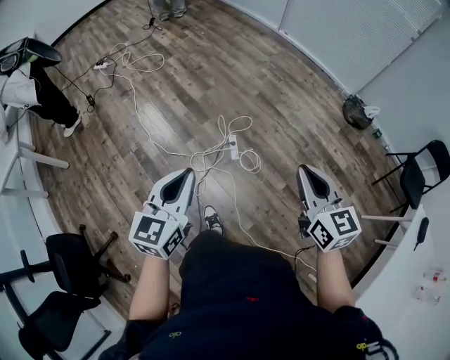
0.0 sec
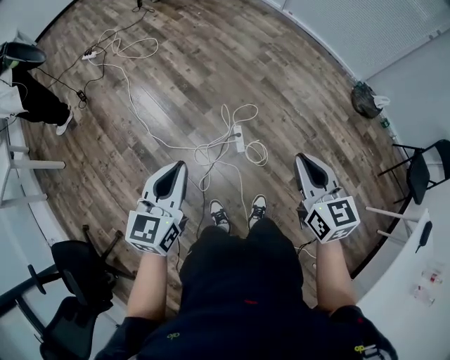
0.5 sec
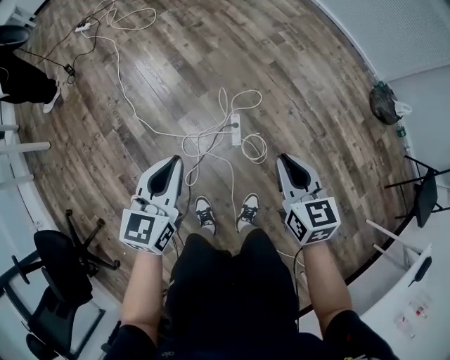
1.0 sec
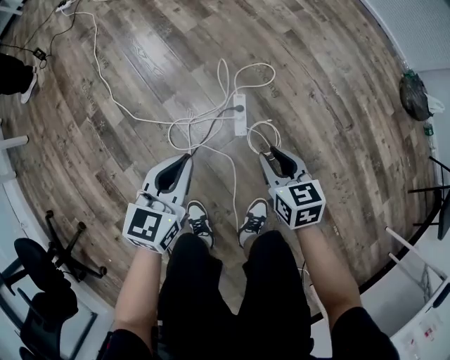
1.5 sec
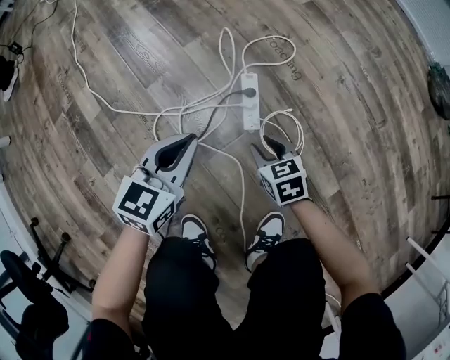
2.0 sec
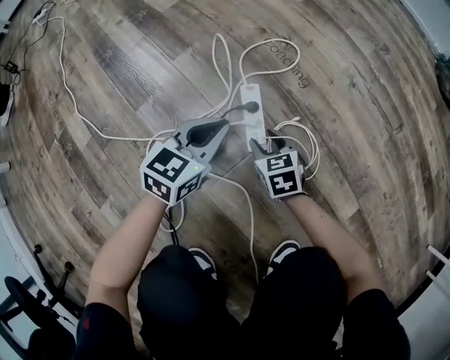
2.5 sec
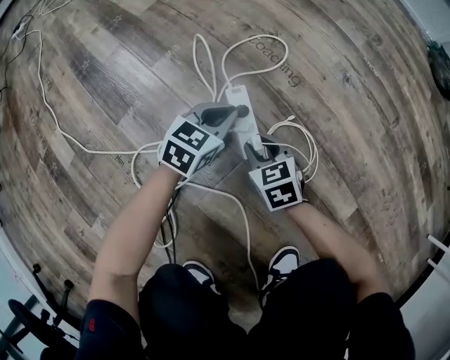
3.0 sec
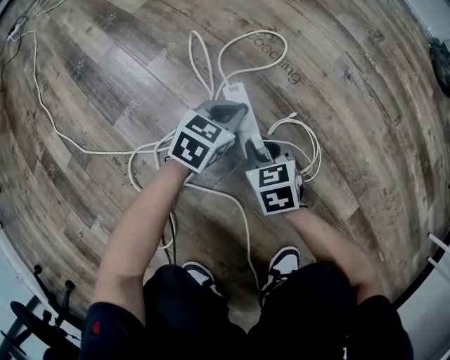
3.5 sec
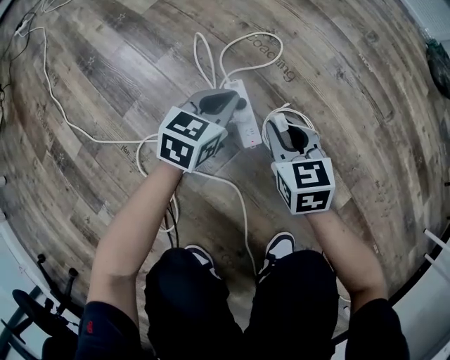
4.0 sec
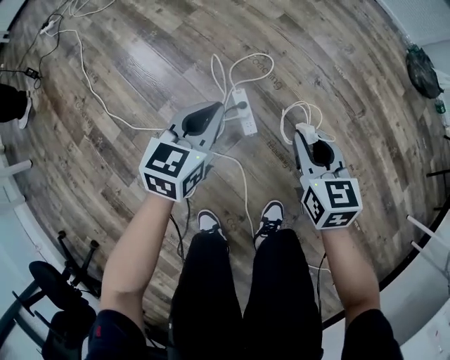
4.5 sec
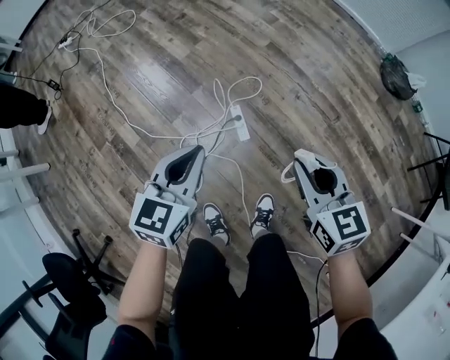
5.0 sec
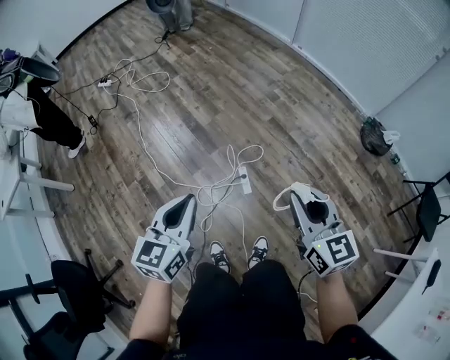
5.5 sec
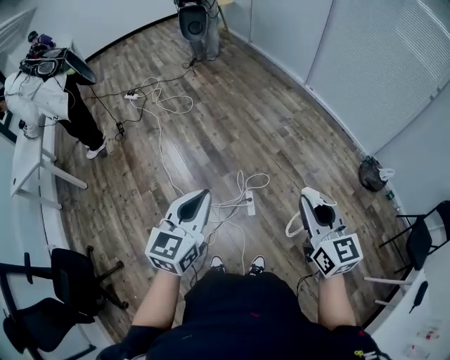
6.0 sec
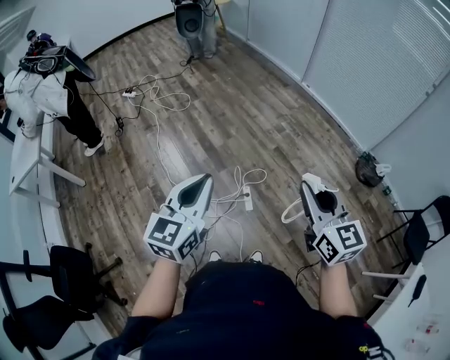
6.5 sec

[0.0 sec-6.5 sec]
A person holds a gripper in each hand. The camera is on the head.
0.0 sec to 2.0 sec: The grippers both shift downward by some 90 cm. The right gripper tilts its fingers approximately 40 degrees downward, and opens.
2.0 sec to 4.5 sec: The left gripper goes about 20 cm upward and forward, while the right gripper travels upward by about 30 cm, and changes its angle by some 30 degrees.
4.5 sec to 6.5 sec: Both grippers move upward, some 70 cm. The left gripper swivels about 30 degrees, while the right gripper turns by some 30 degrees.

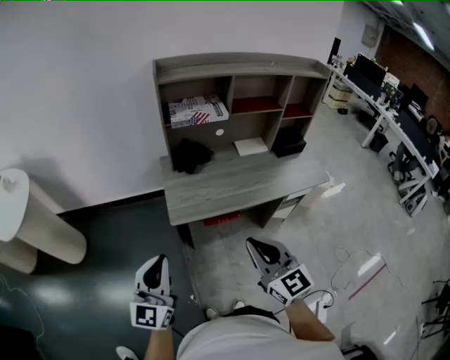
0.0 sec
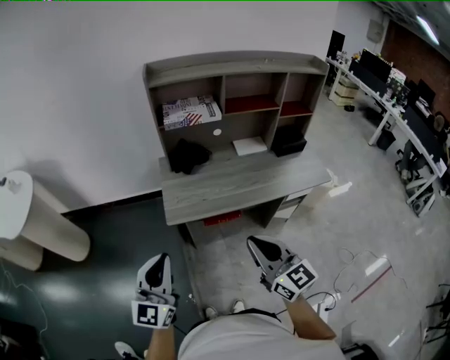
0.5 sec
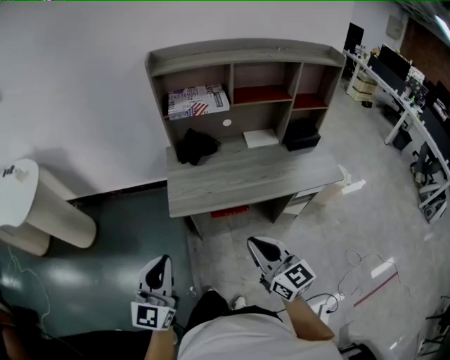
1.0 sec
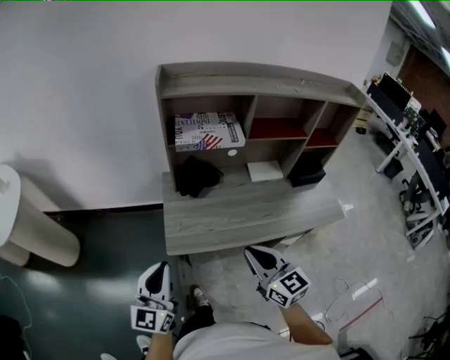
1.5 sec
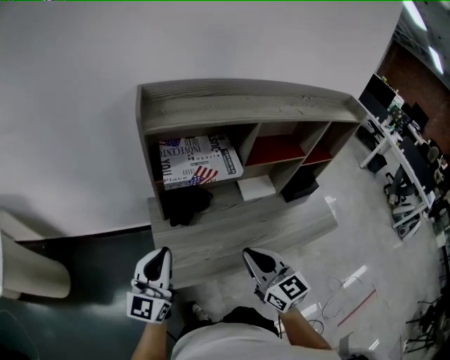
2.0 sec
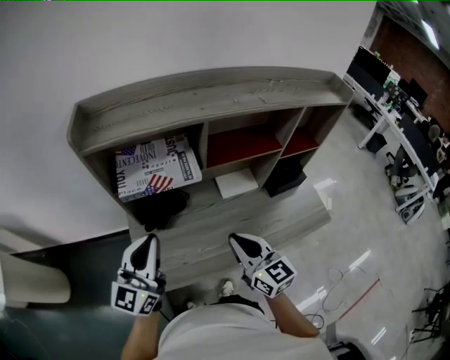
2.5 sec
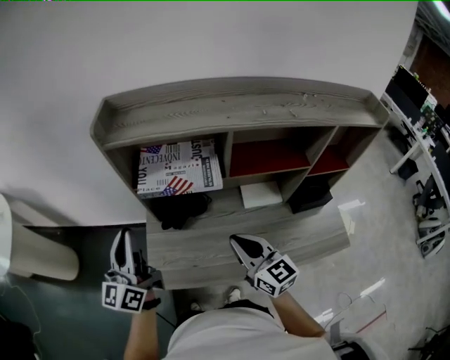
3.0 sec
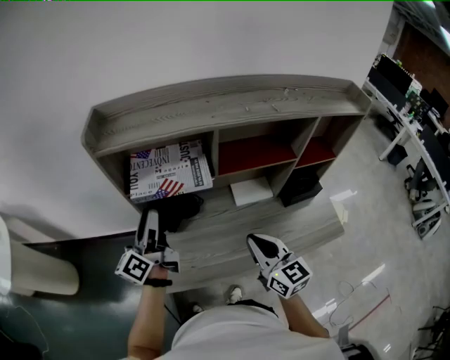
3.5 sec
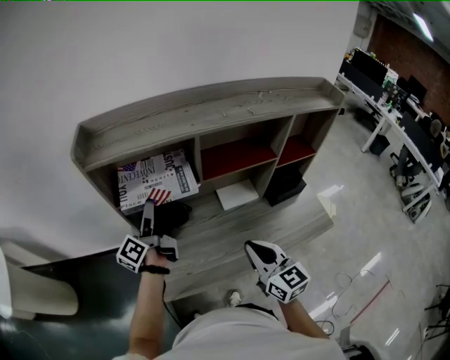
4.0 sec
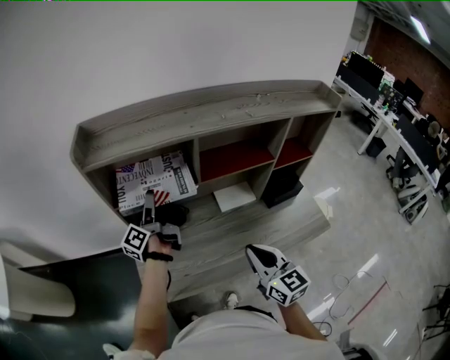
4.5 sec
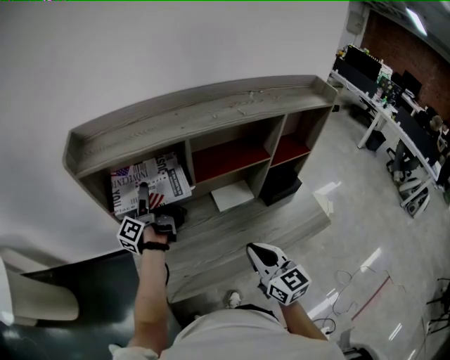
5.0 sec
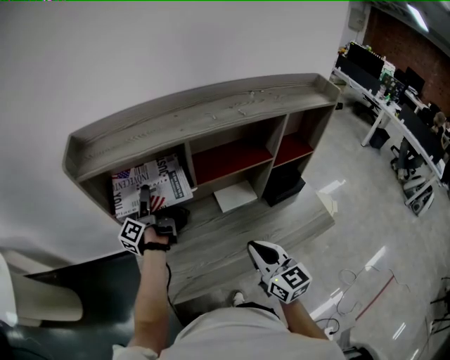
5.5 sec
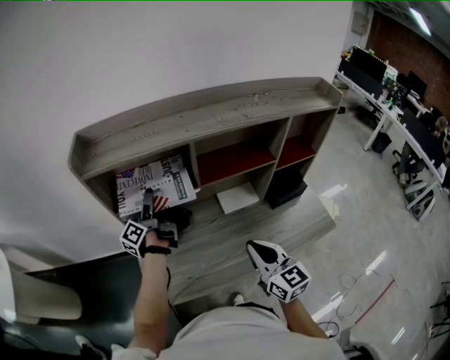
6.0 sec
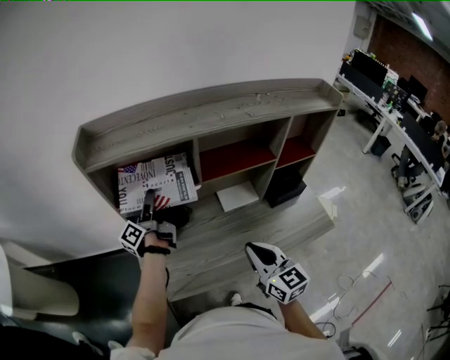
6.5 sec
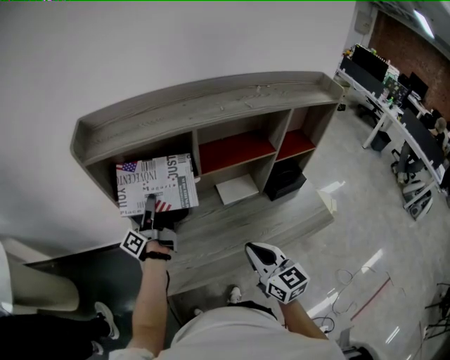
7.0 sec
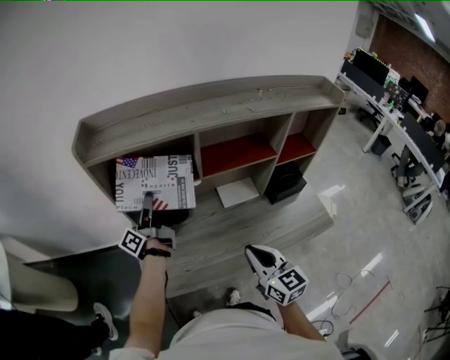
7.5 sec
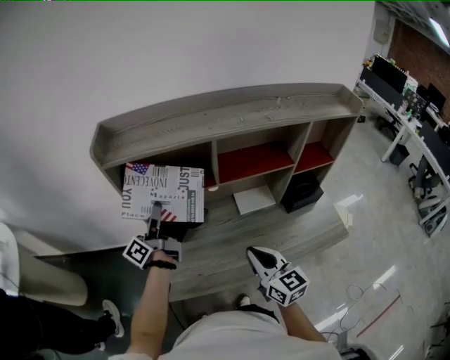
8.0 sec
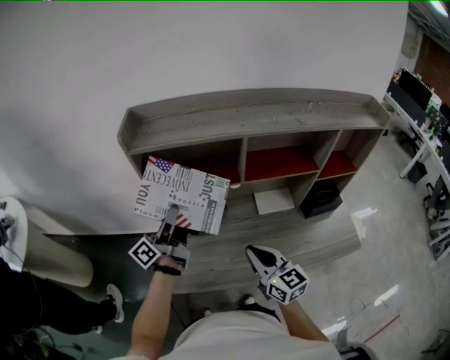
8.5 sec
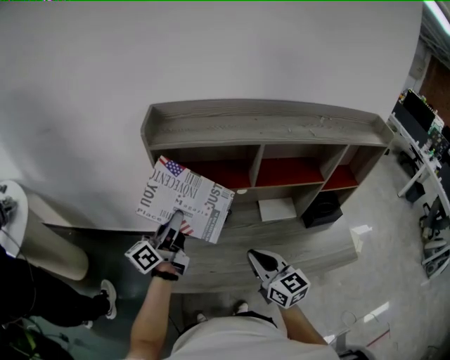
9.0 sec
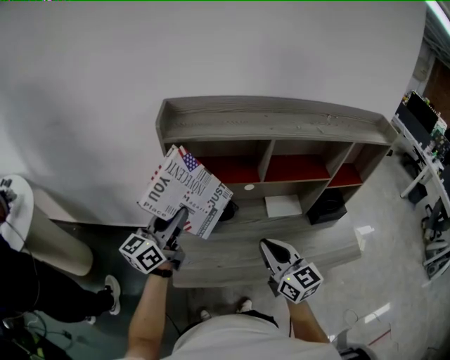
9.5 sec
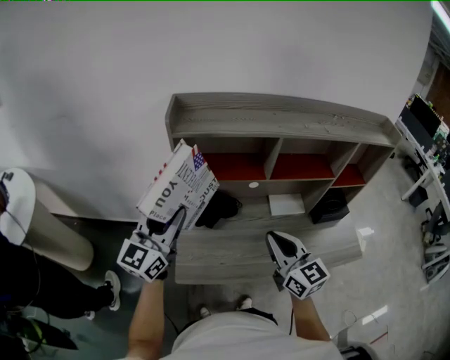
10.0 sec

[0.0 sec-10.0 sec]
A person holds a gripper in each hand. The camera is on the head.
0.0 sec to 2.0 sec: The two grippers go approximately 35 cm forward.
2.0 sec to 4.0 sec: The right gripper goes some 15 cm to the right, while the left gripper shifts roughly 25 cm forward and to the right, rolls counterclockwise, seen from behind, by about 60 degrees, and opens.
4.0 sec to 6.0 sec: The left gripper moves forward, some 5 cm.
6.0 sec to 8.0 sec: The left gripper shifts some 5 cm backward, and closes up.
8.0 sec to 10.0 sec: The right gripper moves to the left and upward, approximately 10 cm; the left gripper heads backward, upward and to the left, covering roughly 20 cm, and rotates around the line of its fingers by roughly 60 degrees, clockwise from behind.

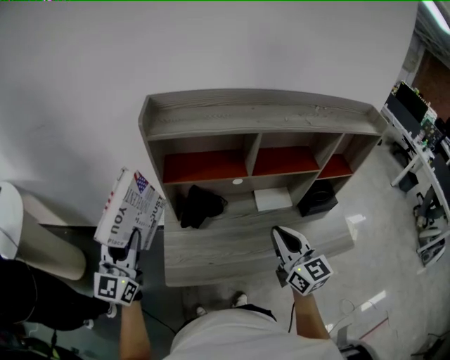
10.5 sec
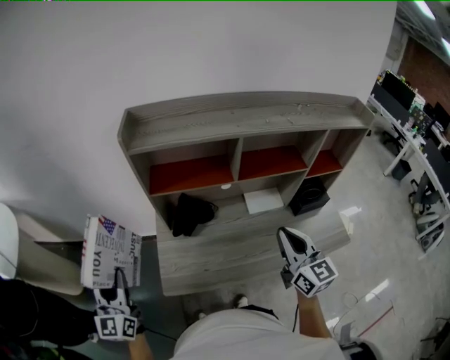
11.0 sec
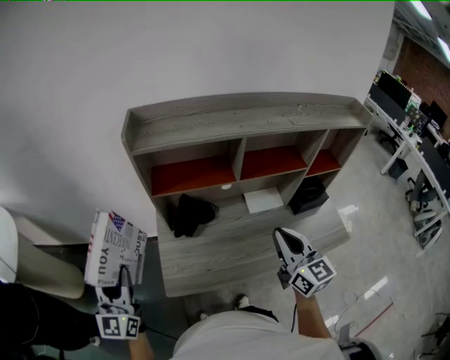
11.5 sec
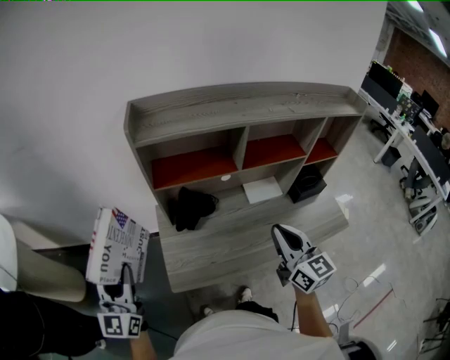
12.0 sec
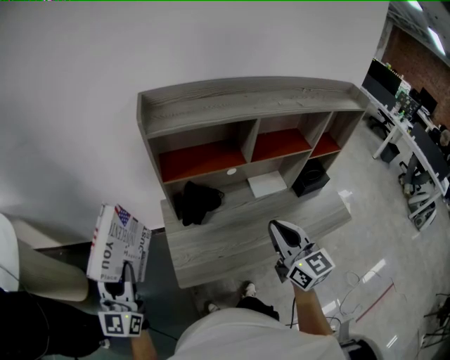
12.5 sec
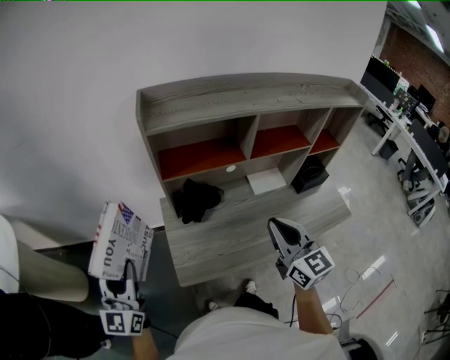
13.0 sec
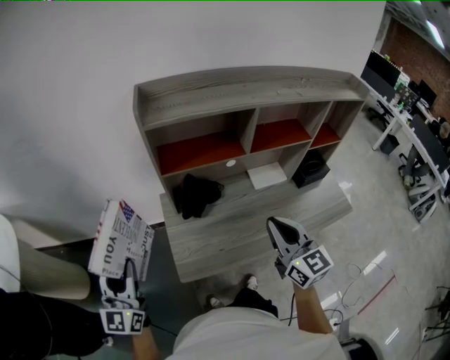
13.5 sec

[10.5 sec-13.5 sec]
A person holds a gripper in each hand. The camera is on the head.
10.5 sec to 12.0 sec: The left gripper travels to the left by some 5 cm.
12.0 sec to 13.5 sec: The right gripper moves to the left, roughly 5 cm.

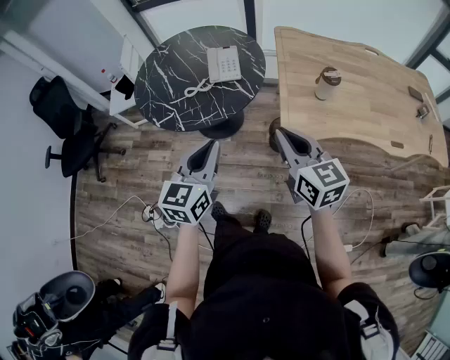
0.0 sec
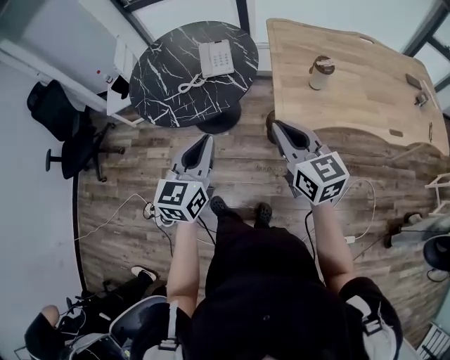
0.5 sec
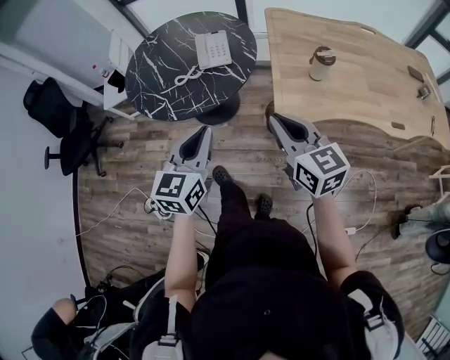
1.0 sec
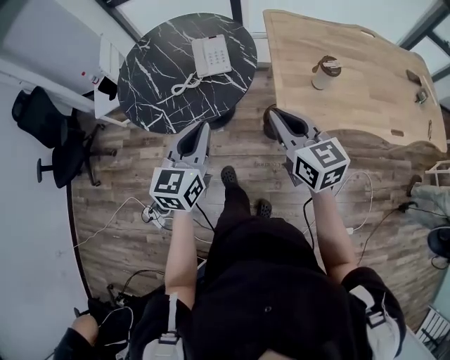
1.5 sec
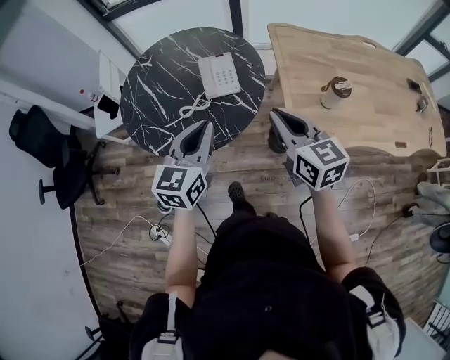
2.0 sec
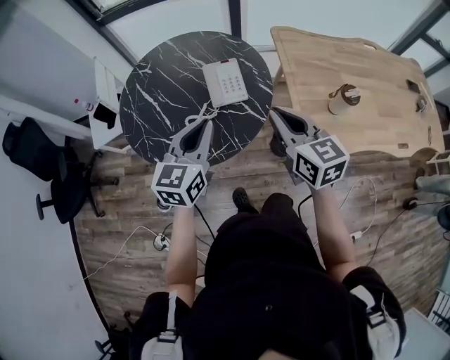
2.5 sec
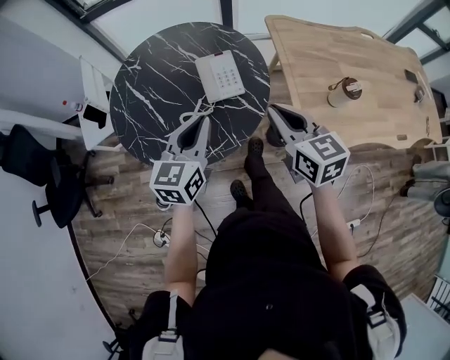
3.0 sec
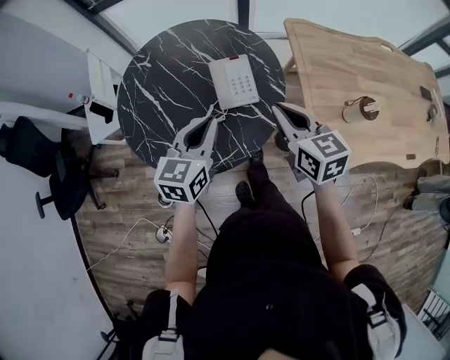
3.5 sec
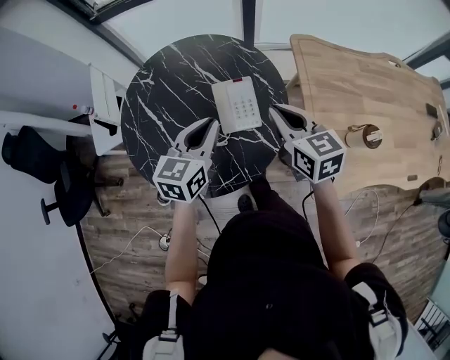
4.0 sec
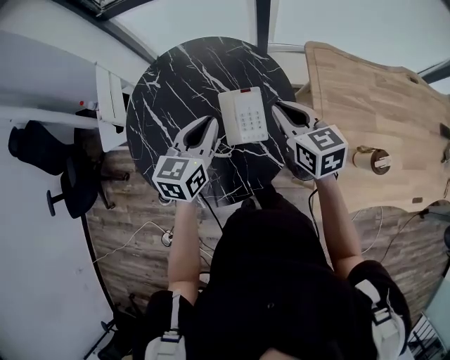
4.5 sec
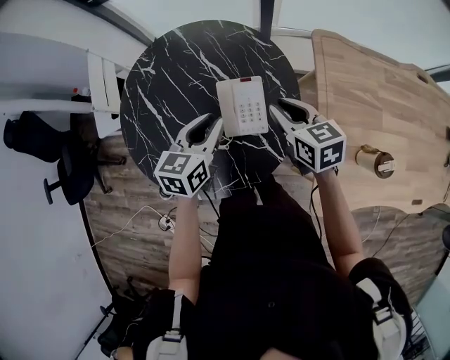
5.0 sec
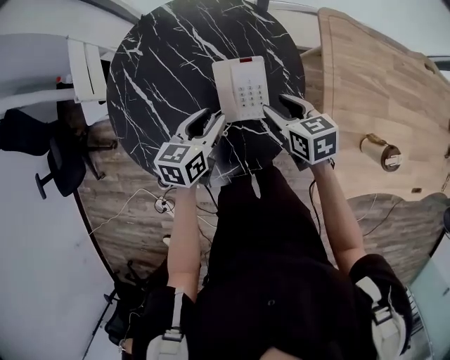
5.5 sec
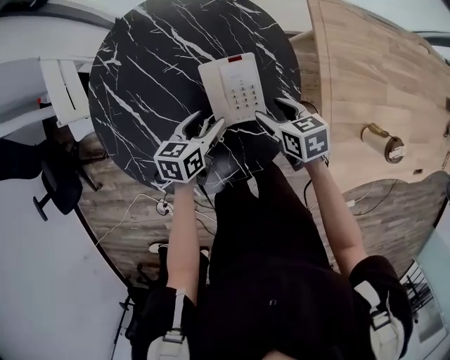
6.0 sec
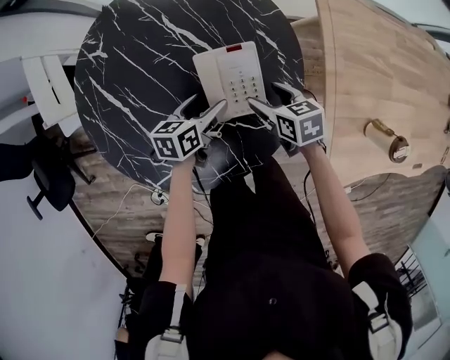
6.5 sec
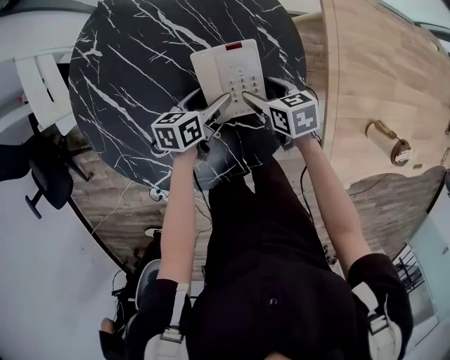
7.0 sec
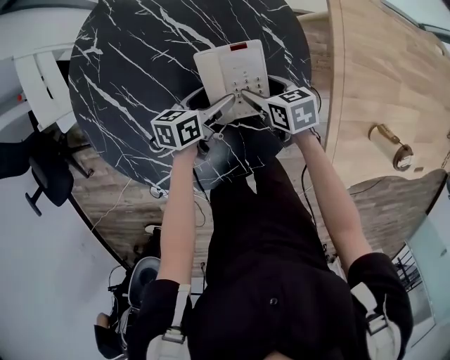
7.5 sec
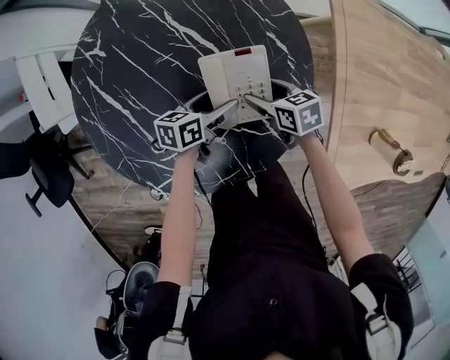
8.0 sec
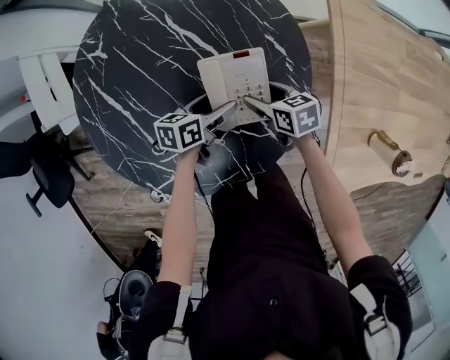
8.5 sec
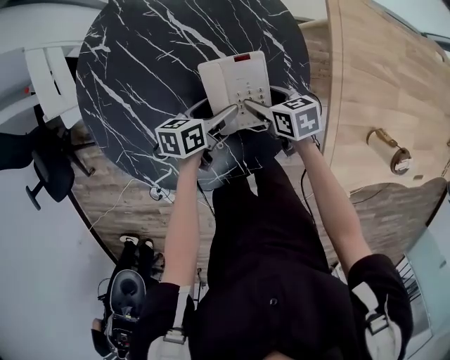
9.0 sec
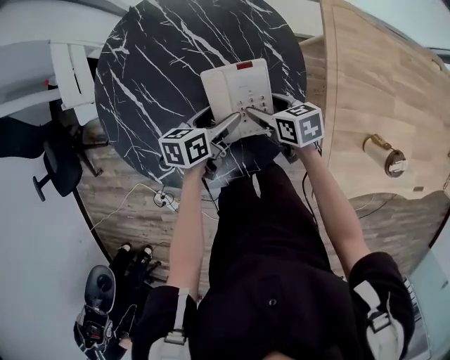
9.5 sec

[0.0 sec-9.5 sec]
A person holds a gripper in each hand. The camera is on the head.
0.0 sec to 2.0 sec: Both grippers travel together forward, roughly 20 cm.
2.0 sec to 4.0 sec: Both grippers travel together forward, approximately 25 cm.
4.0 sec to 5.5 sec: Both grippers move downward, about 15 cm. The right gripper changes its angle by about 20 degrees, and opens its fingers, while the left gripper turns by approximately 20 degrees, and opens.
5.5 sec to 7.5 sec: The grippers both shift downward by some 15 cm. The right gripper opens; the left gripper changes its angle by about 30 degrees, and opens its fingers.
7.5 sec to 9.5 sec: The grippers both shift upward by approximately 5 cm.
